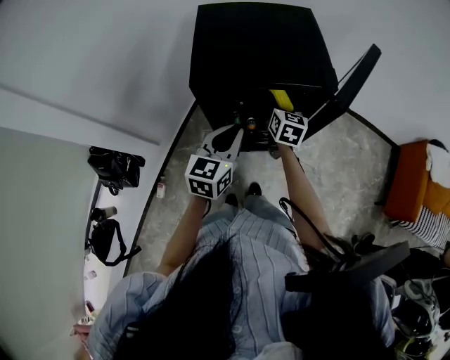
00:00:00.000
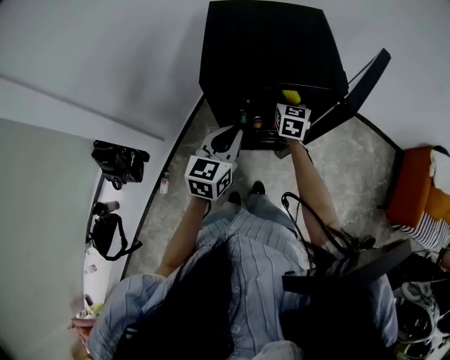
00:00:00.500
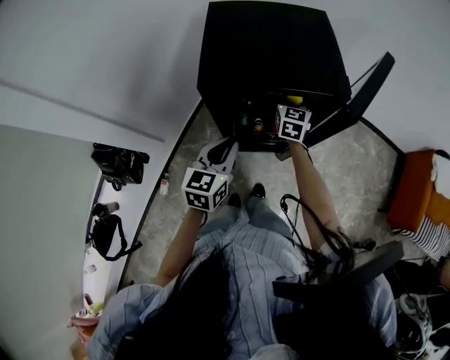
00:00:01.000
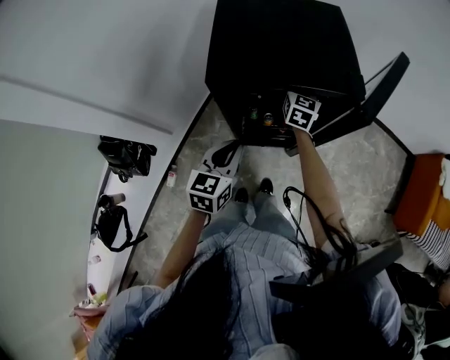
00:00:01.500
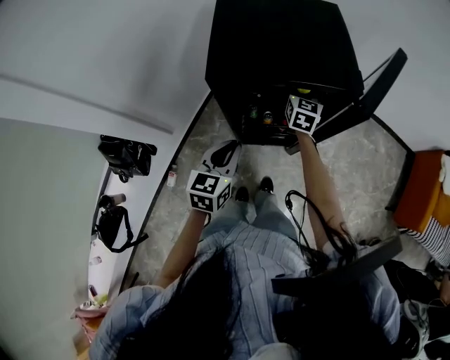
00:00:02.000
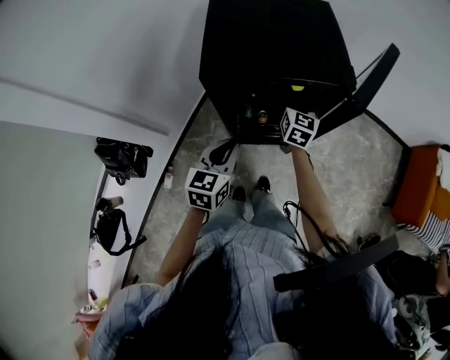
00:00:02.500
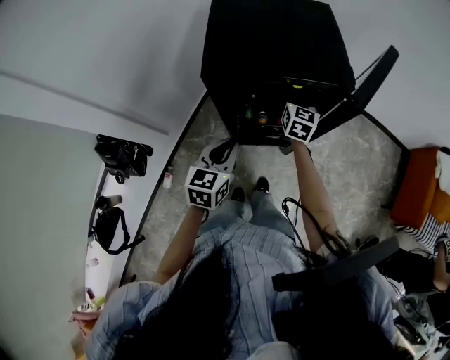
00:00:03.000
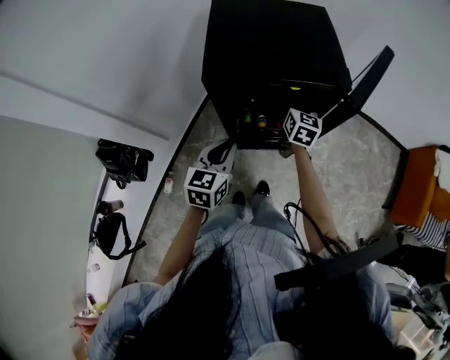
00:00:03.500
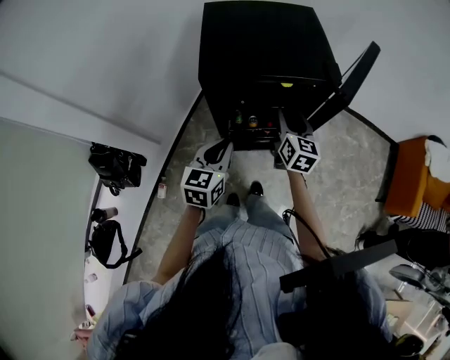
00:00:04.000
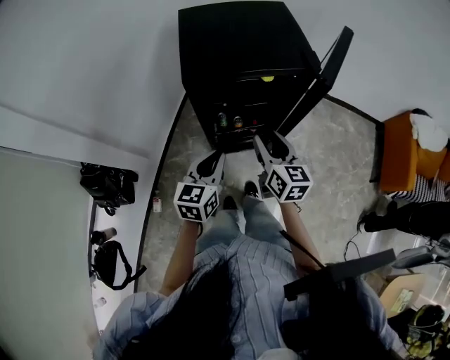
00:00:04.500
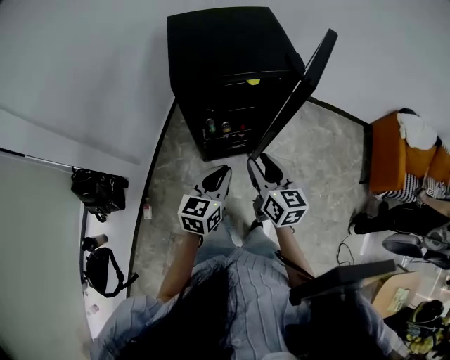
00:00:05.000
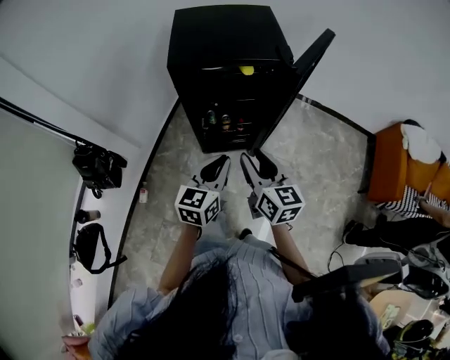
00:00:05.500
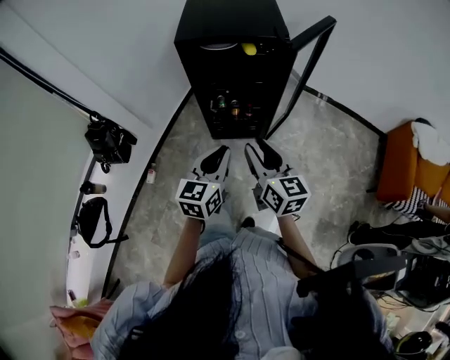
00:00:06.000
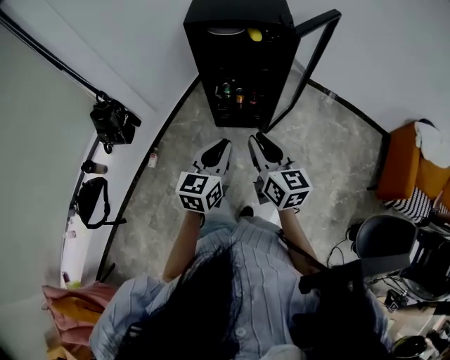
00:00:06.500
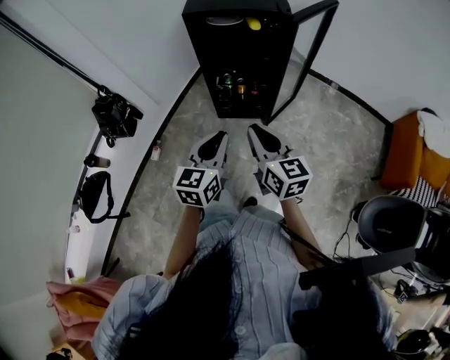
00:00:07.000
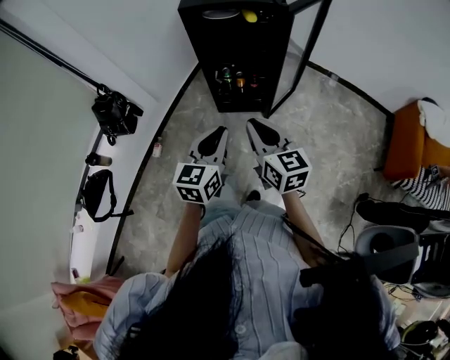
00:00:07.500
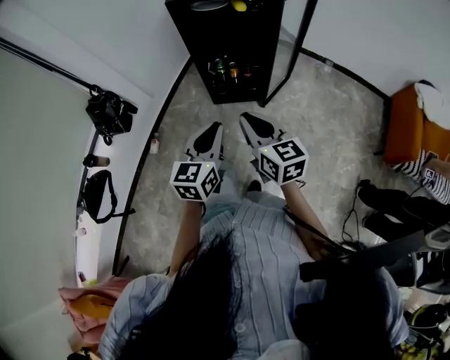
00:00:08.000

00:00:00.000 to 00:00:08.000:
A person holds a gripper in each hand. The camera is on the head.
00:00:00.000 to 00:00:02.000: The left gripper goes roughly 5 cm downward; the right gripper shifts roughly 5 cm forward.
00:00:02.000 to 00:00:04.000: The right gripper goes roughly 15 cm backward.
00:00:04.000 to 00:00:06.000: The right gripper is displaced backward by some 30 cm, and rotates about 20 degrees; the left gripper is displaced backward and to the right by some 25 cm.
00:00:06.000 to 00:00:08.000: Both grippers move backward, roughly 10 cm. The right gripper closes.

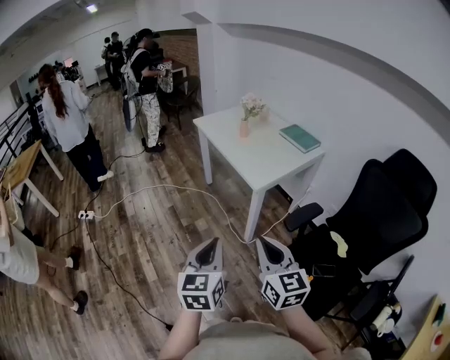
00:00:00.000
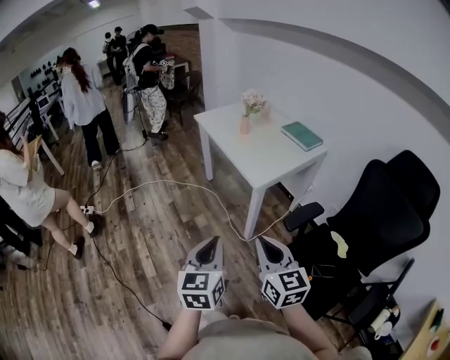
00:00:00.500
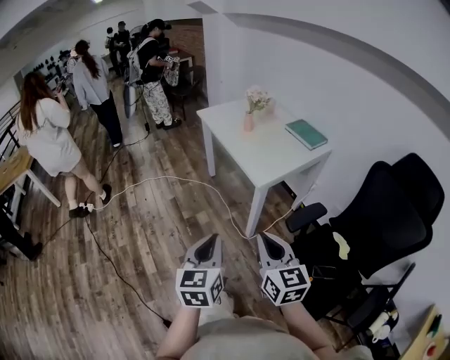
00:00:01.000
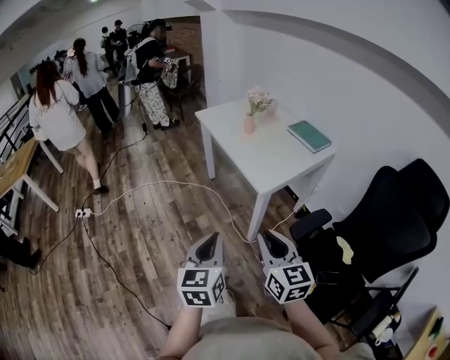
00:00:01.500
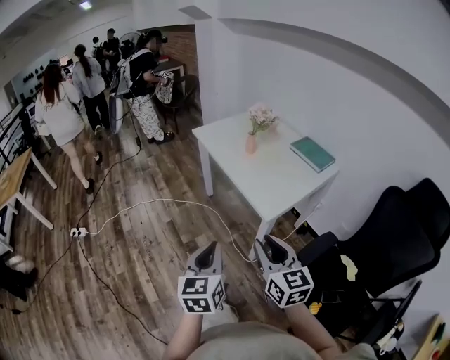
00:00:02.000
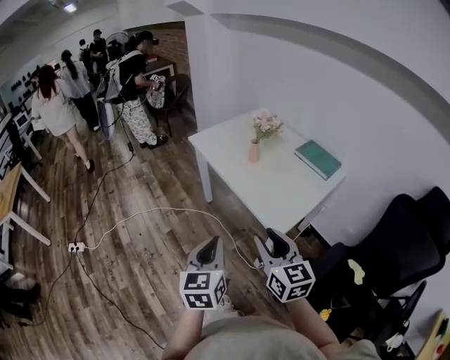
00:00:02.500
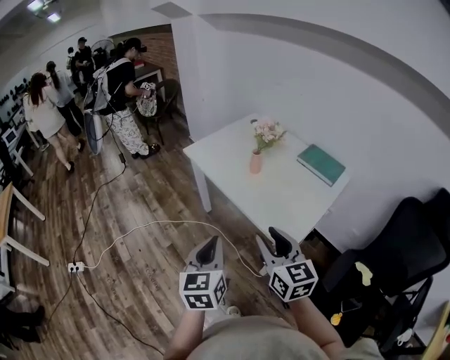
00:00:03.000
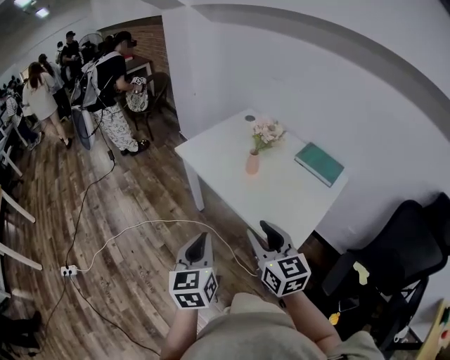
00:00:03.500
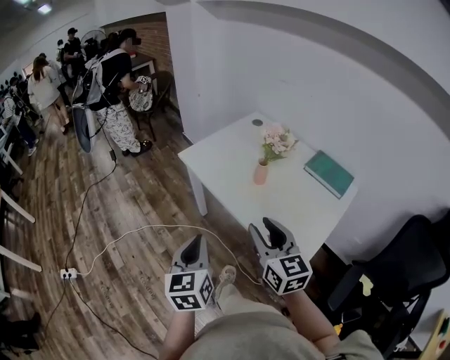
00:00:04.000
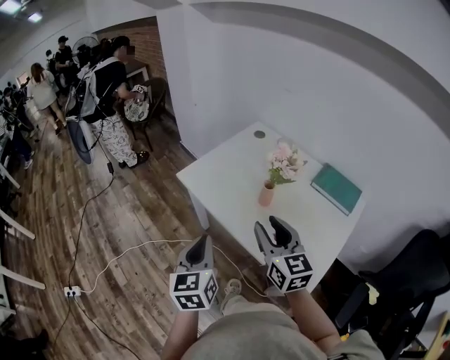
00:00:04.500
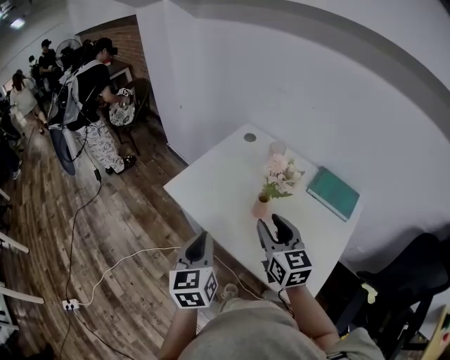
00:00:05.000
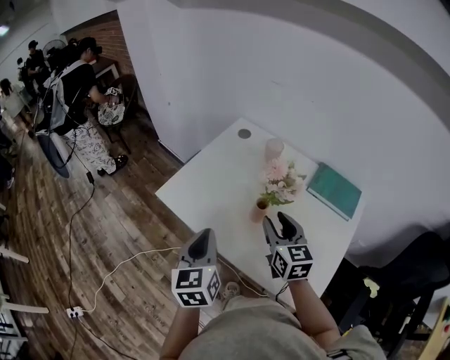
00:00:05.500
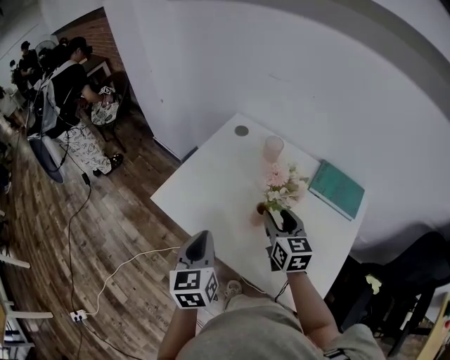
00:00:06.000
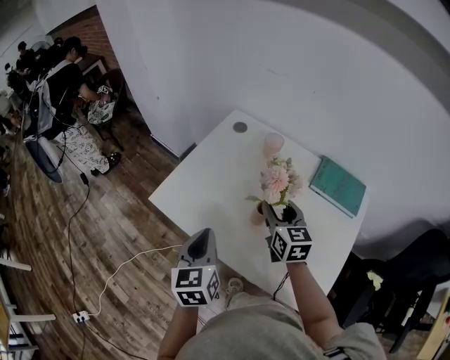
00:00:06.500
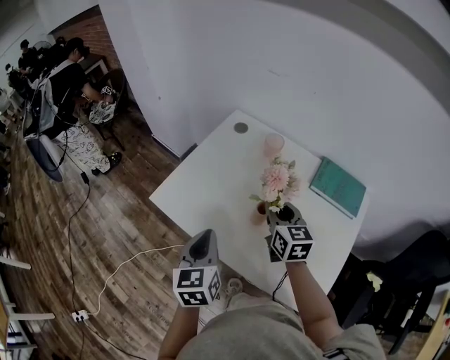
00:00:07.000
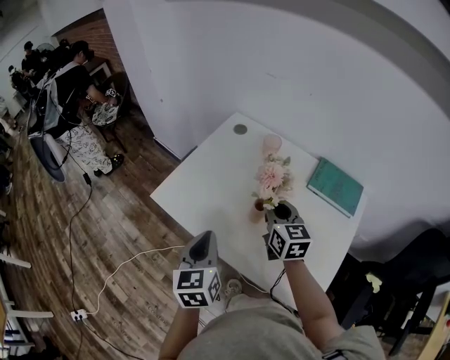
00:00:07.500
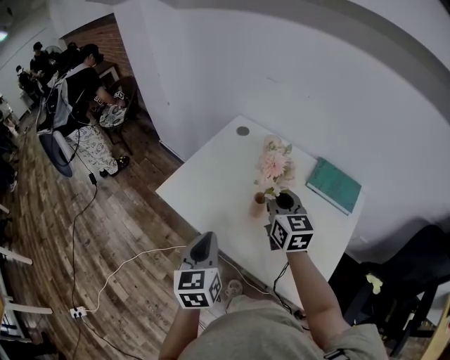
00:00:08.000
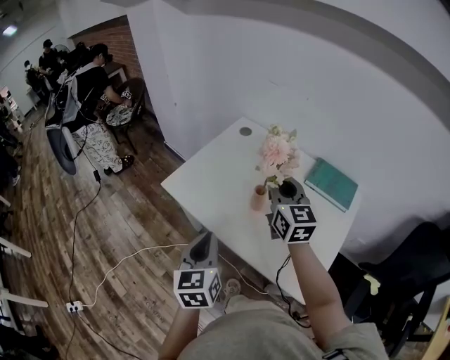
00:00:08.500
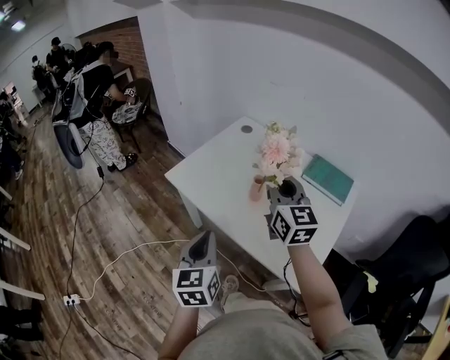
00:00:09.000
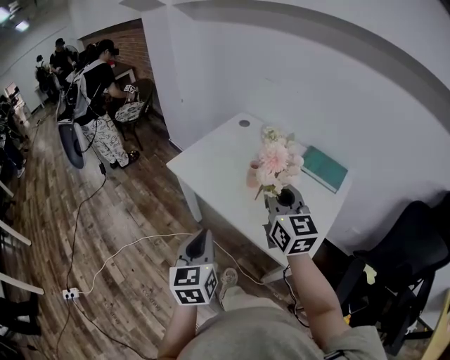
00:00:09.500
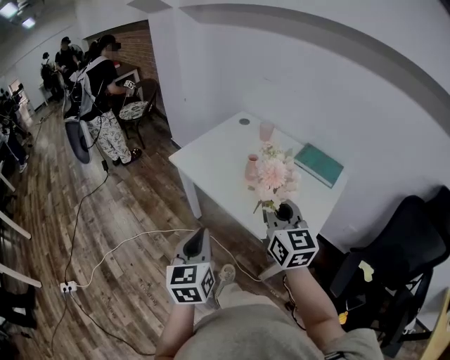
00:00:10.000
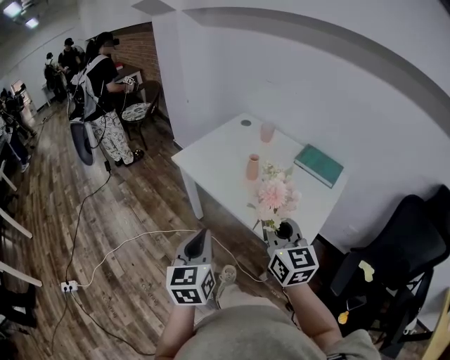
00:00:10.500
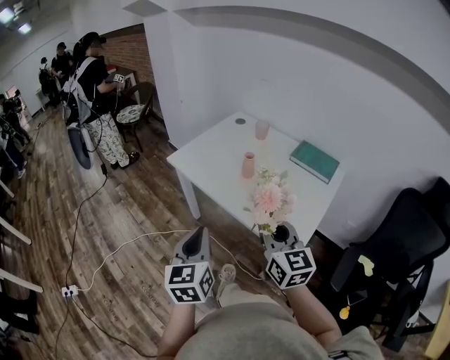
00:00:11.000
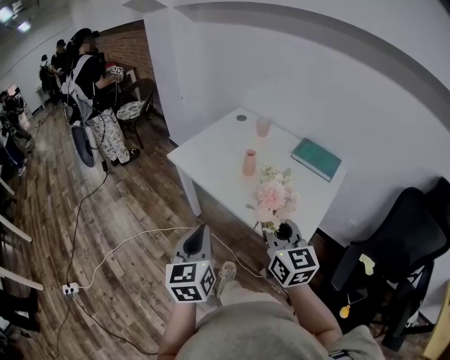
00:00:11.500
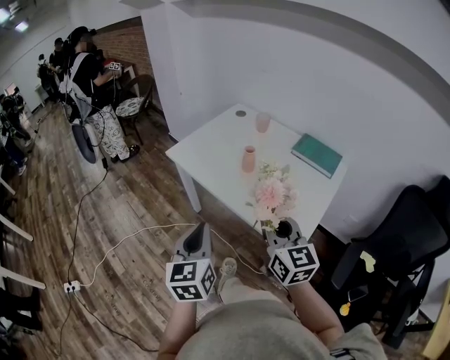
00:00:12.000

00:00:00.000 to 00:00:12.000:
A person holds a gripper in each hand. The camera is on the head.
00:00:00.000 to 00:00:02.000: The grippers both shift forward by roughly 20 cm. The right gripper opens.
00:00:02.000 to 00:00:04.000: The two grippers go some 35 cm forward.
00:00:04.000 to 00:00:06.000: Both grippers travel together forward, about 30 cm. The right gripper swivels about 20 degrees.
00:00:06.000 to 00:00:08.000: The right gripper travels upward by approximately 10 cm, and closes; the left gripper is displaced backward by about 5 cm.
00:00:08.000 to 00:00:10.000: The two grippers go some 25 cm backward.
00:00:10.000 to 00:00:12.000: The right gripper shifts some 5 cm backward.

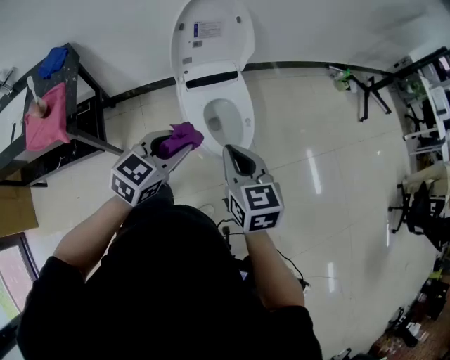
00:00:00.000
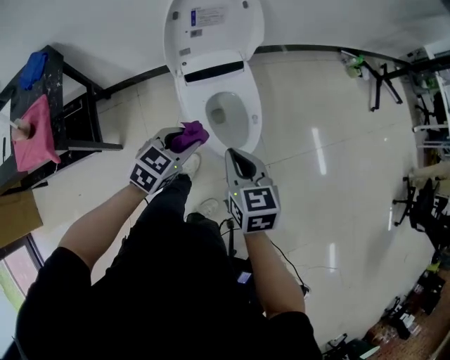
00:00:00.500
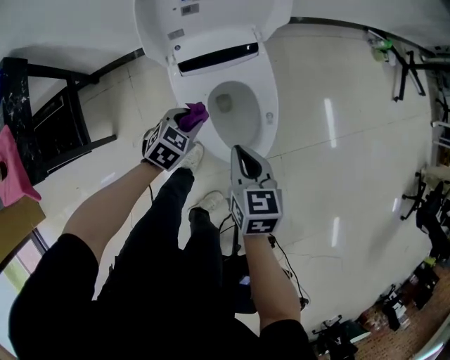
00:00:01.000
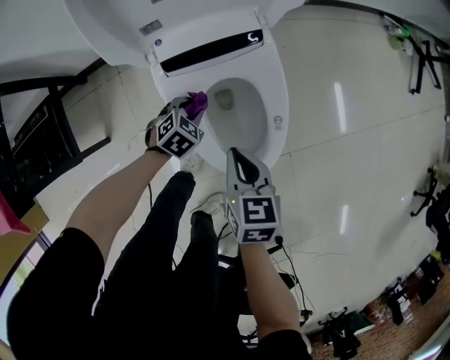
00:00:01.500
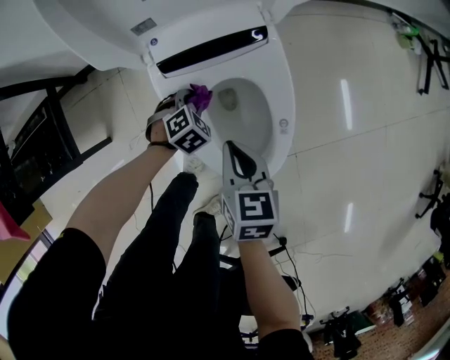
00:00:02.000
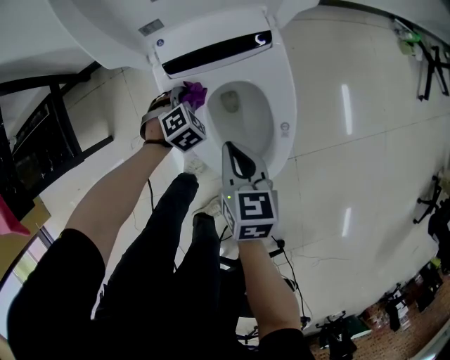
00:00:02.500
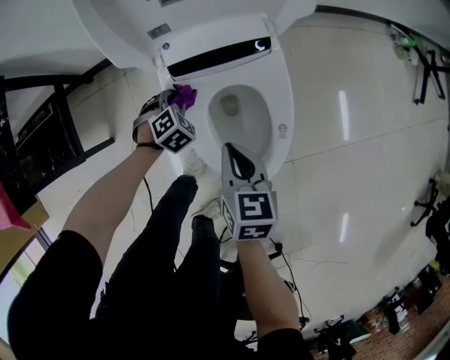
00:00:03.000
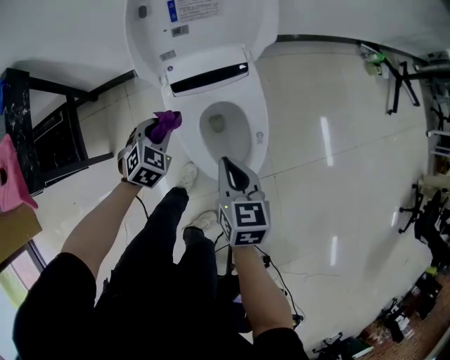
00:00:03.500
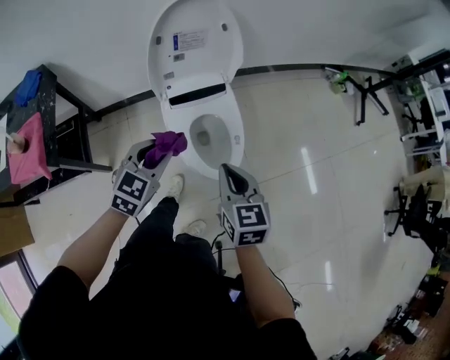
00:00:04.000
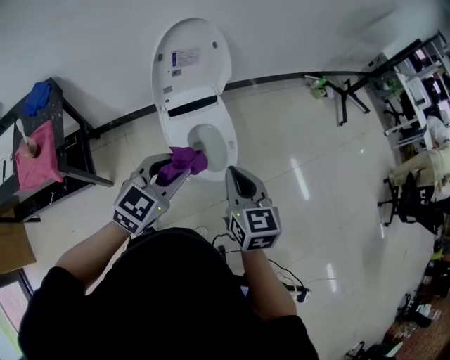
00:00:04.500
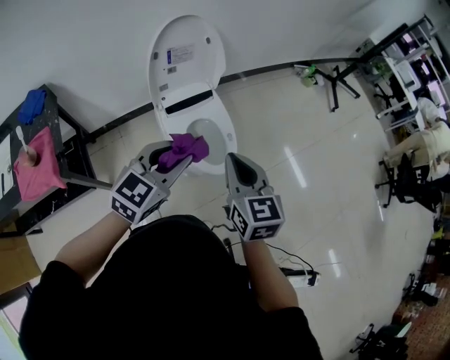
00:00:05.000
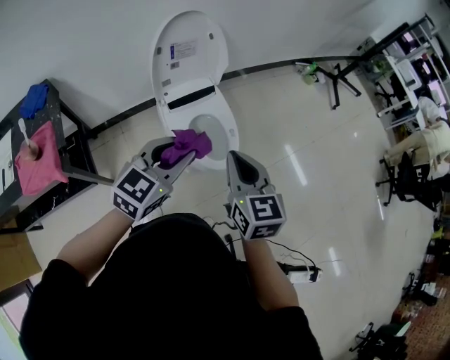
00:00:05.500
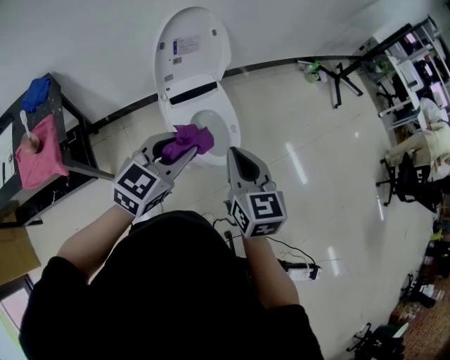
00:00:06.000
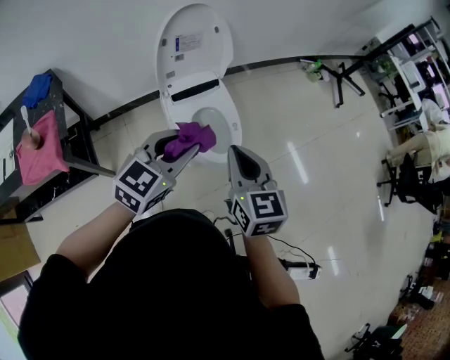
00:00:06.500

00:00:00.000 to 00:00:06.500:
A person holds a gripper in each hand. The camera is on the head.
00:00:00.000 to 00:00:02.000: The grippers both shift downward and forward by roughly 60 cm. The left gripper points its fingers approximately 40 degrees further downward; the right gripper changes its angle by about 20 degrees.
00:00:02.000 to 00:00:04.500: Both grippers move upward, approximately 50 cm. The right gripper swivels roughly 30 degrees. The left gripper tips its fingers upward by some 50 degrees.
00:00:04.500 to 00:00:06.500: The right gripper changes place by roughly 5 cm.
